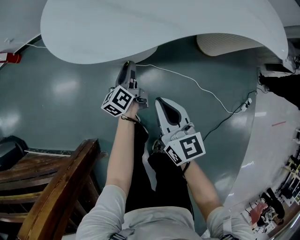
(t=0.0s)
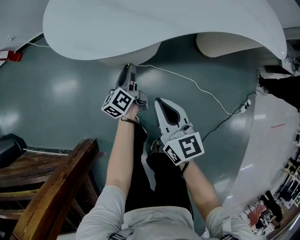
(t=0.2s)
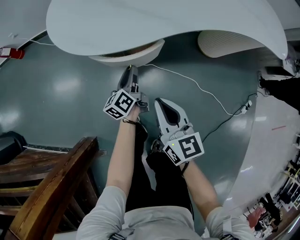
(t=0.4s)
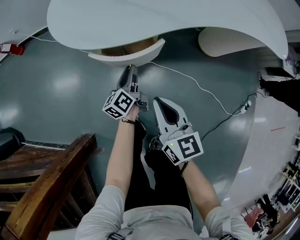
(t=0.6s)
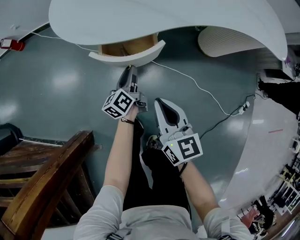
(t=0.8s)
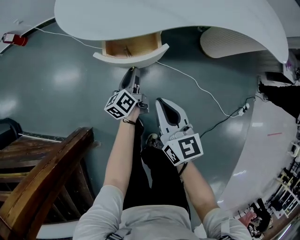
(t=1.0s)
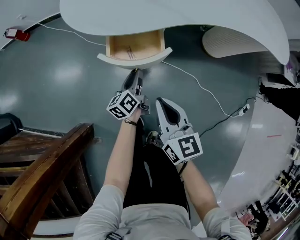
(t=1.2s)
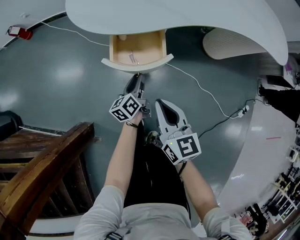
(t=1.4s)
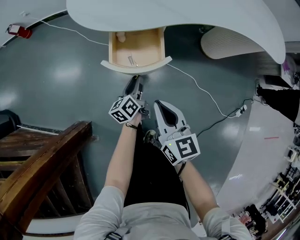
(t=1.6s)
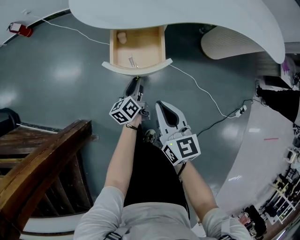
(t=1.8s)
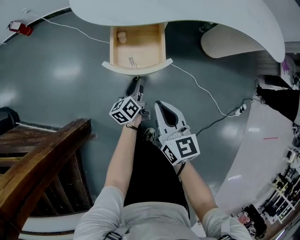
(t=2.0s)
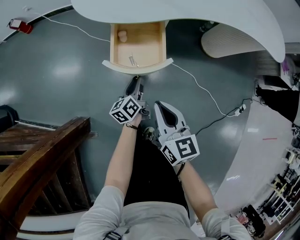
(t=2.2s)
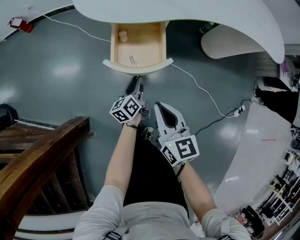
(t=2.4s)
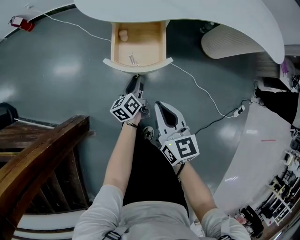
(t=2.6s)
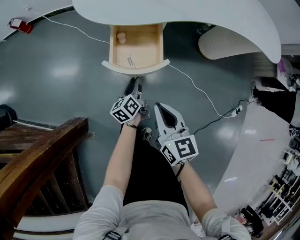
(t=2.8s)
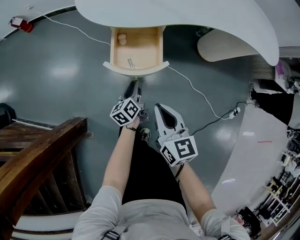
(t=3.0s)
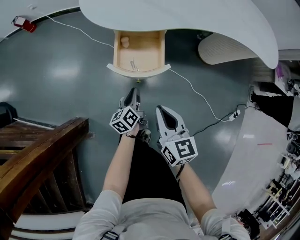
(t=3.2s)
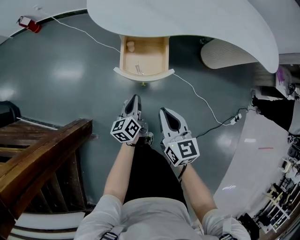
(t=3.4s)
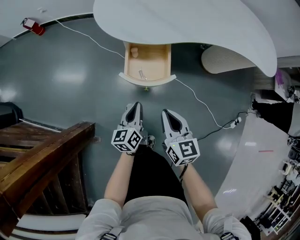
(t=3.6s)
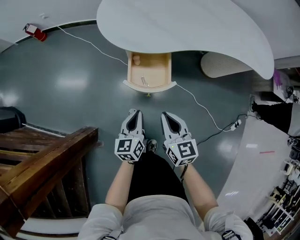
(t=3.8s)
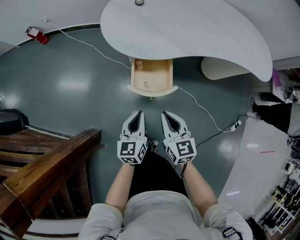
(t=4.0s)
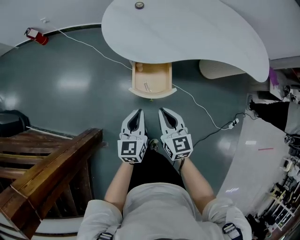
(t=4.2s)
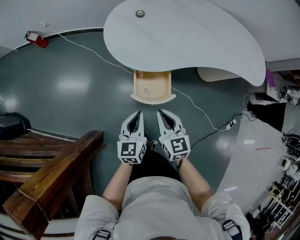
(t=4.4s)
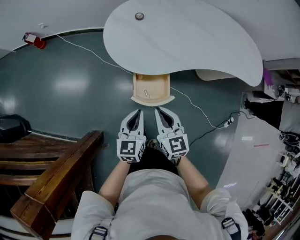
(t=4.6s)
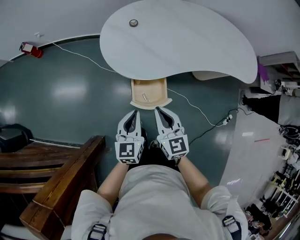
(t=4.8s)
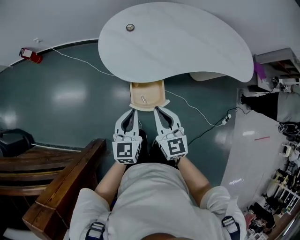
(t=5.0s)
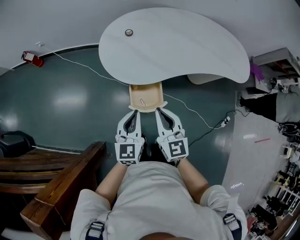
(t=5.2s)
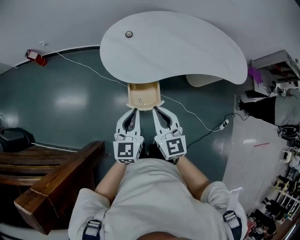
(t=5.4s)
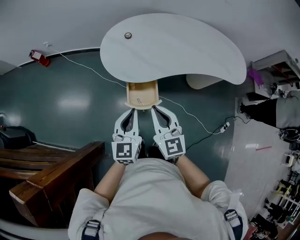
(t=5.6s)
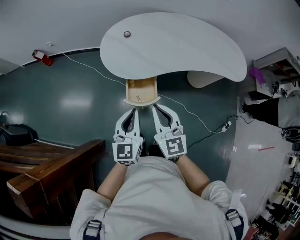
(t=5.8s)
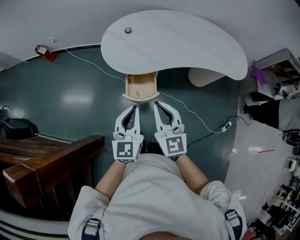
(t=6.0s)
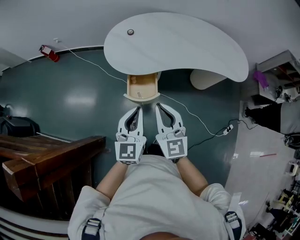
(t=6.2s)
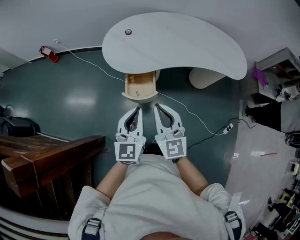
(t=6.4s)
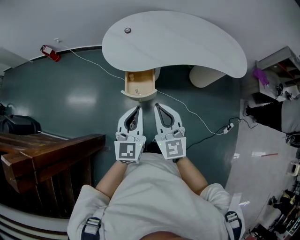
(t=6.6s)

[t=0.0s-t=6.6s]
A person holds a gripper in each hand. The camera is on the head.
t=0.0s to t=1.6s: The left gripper is displaced backward by about 15 cm, while the right gripper is displaced backward by about 10 cm.
t=1.6s to t=3.2s: The left gripper moves backward, about 5 cm.
t=3.2s to t=5.0s: The right gripper travels upward and forward by roughly 25 cm. The left gripper shifts approximately 35 cm upward, and twists approximately 40 degrees clockwise, seen from behind.
t=5.0s to t=6.6s: The right gripper heads backward, upward and to the right, covering approximately 20 cm, while the left gripper shifts approximately 20 cm backward, to the right and upward.

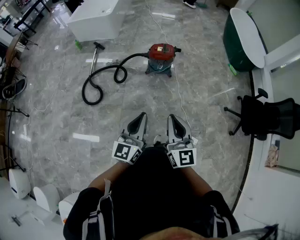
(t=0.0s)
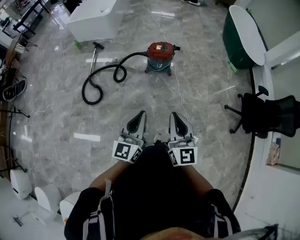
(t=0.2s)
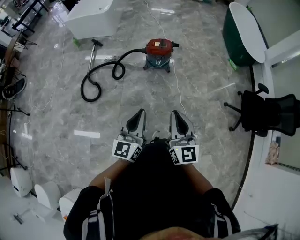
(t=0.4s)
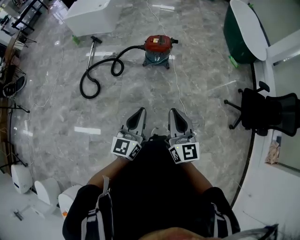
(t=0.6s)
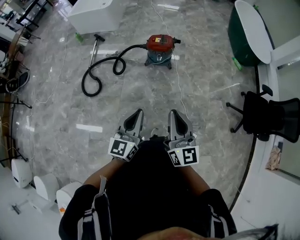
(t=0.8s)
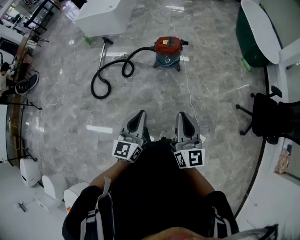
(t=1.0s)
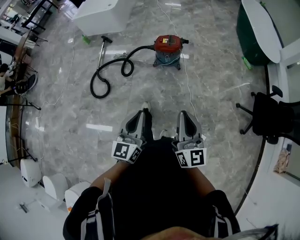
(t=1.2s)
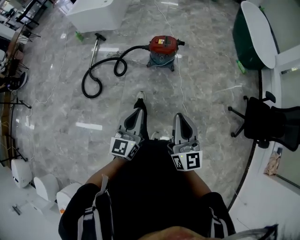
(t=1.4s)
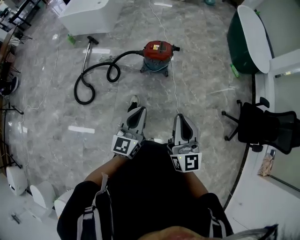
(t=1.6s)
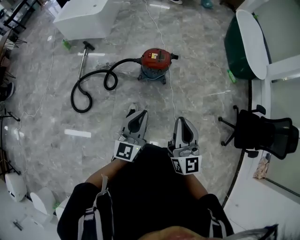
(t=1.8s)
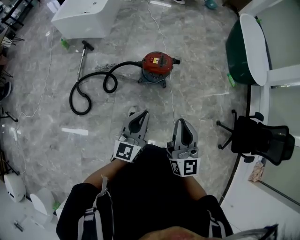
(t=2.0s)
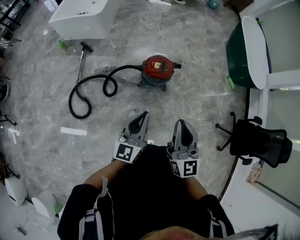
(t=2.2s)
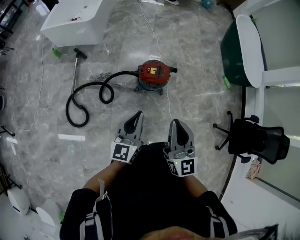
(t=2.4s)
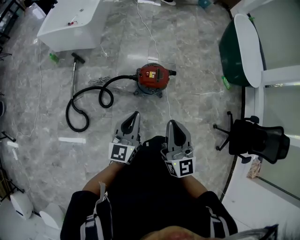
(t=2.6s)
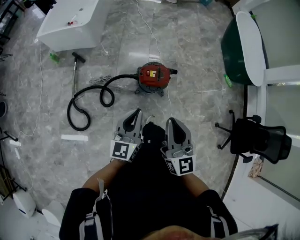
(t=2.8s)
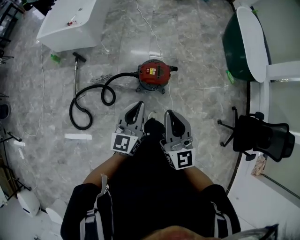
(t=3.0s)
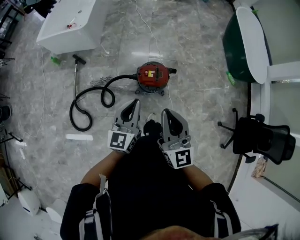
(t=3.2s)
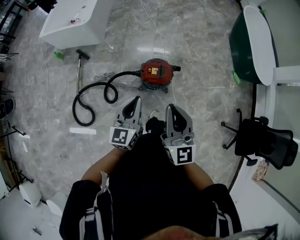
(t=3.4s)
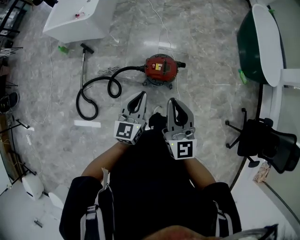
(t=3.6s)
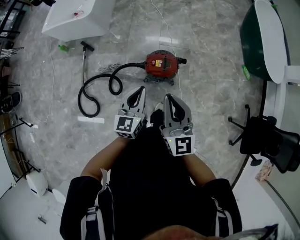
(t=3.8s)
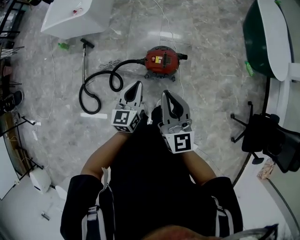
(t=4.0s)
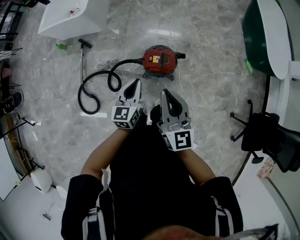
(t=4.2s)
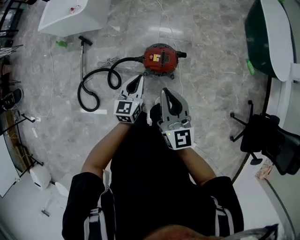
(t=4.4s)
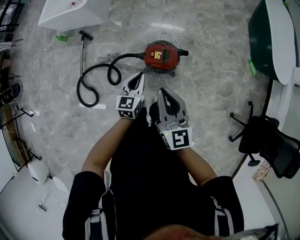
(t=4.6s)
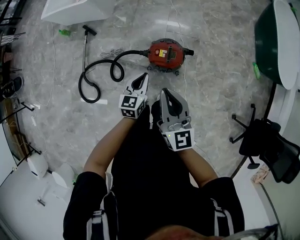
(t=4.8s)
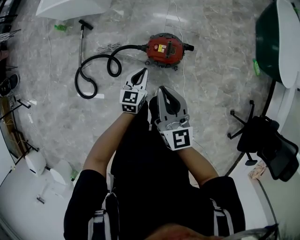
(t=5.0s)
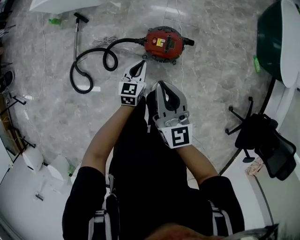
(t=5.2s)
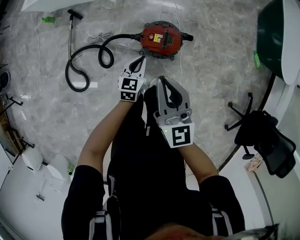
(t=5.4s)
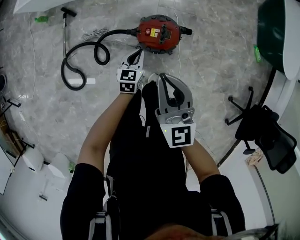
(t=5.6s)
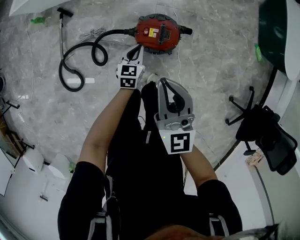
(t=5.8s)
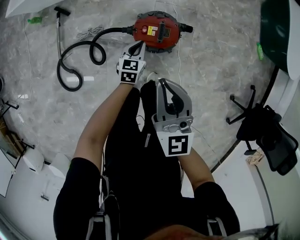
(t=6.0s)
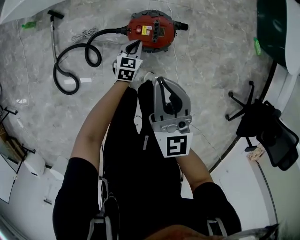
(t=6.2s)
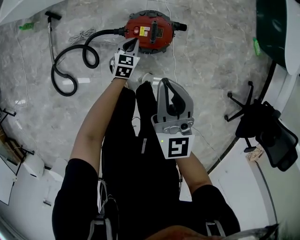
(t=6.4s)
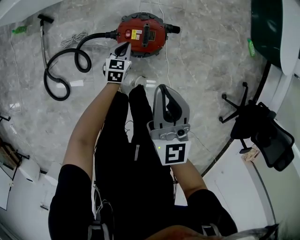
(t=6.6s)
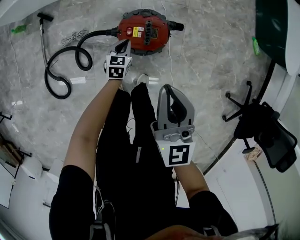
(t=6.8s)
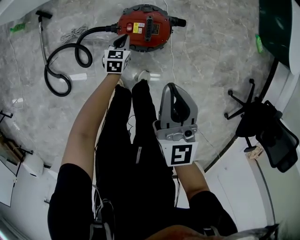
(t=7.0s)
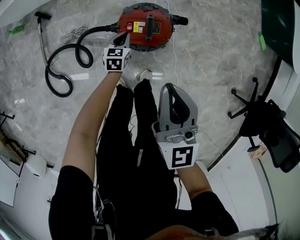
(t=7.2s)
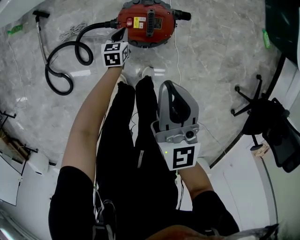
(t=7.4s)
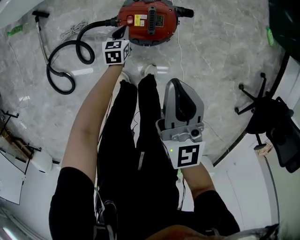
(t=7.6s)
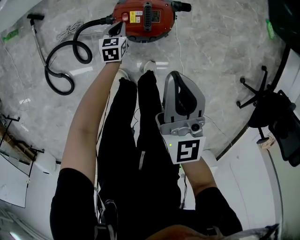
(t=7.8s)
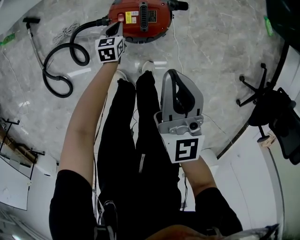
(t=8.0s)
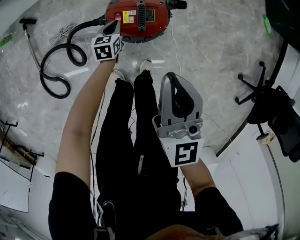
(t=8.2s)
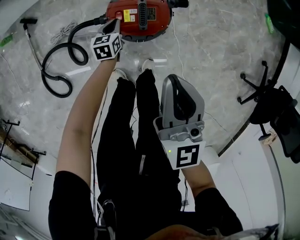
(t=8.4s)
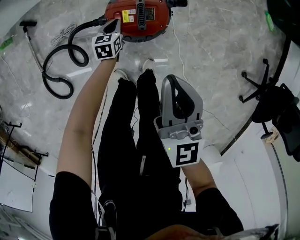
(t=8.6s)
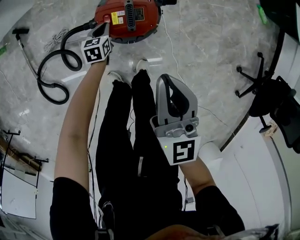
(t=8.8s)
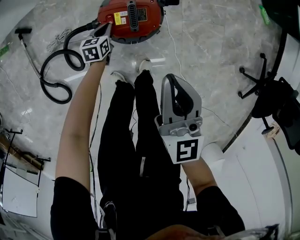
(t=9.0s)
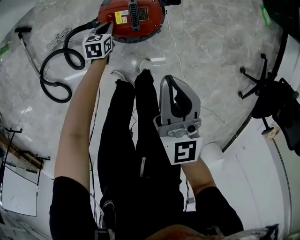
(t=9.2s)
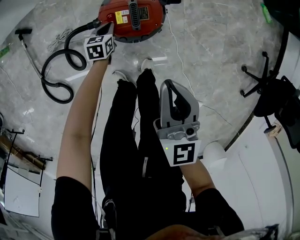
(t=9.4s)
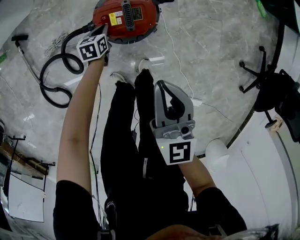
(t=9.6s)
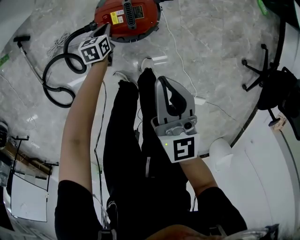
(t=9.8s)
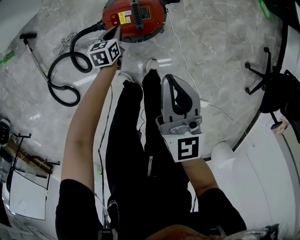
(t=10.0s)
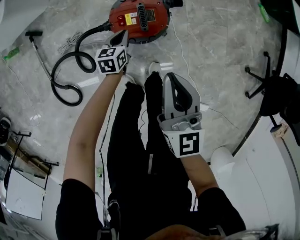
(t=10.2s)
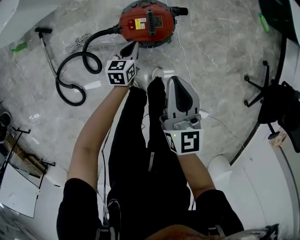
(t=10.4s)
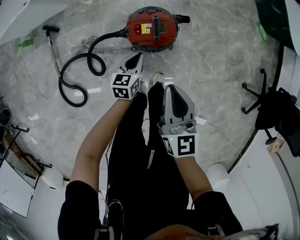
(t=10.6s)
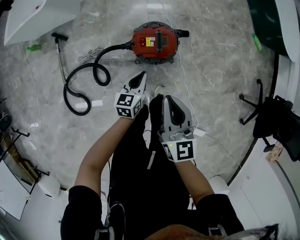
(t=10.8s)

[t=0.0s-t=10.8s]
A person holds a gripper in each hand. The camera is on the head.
t=0.0s to t=1.6s: The left gripper shifts some 15 cm forward, while the right gripper moves forward and to the right, some 15 cm.
t=1.6s to t=3.0s: Both grippers move forward, roughly 35 cm.
t=3.0s to t=4.6s: The right gripper travels forward, downward and to the right by about 20 cm. Meanwhile the left gripper shifts some 25 cm downward, forward and to the right, and swivels approximately 20 degrees.
t=4.6s to t=6.2s: The left gripper is displaced downward by about 30 cm, and rotates roughly 20 degrees. Meanwhile the right gripper moves downward and forward, about 15 cm.
t=6.2s to t=7.8s: The left gripper goes approximately 15 cm downward. The right gripper goes about 15 cm downward and to the right.
t=7.8s to t=9.2s: The grippers stay close to where they were, moving slightly.
t=9.2s to t=10.8s: The right gripper heads backward and upward, covering some 15 cm. Meanwhile the left gripper shifts roughly 30 cm upward and backward, and changes its angle by about 20 degrees.

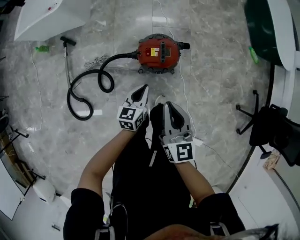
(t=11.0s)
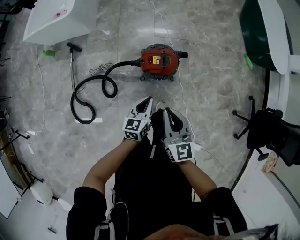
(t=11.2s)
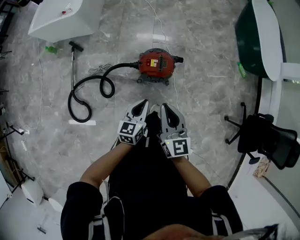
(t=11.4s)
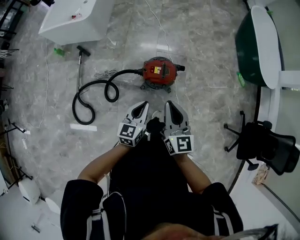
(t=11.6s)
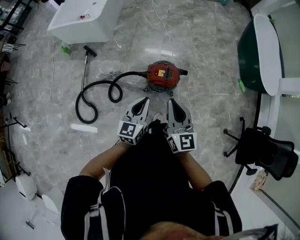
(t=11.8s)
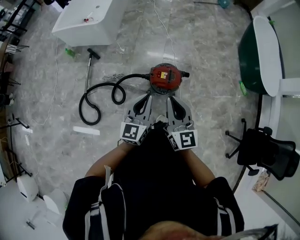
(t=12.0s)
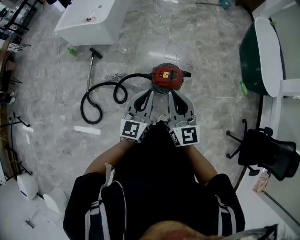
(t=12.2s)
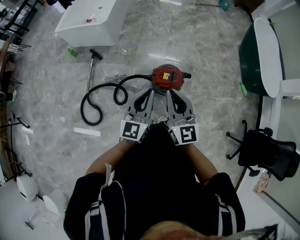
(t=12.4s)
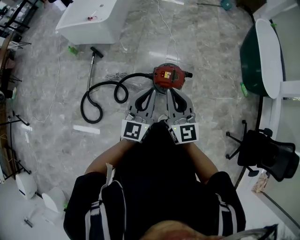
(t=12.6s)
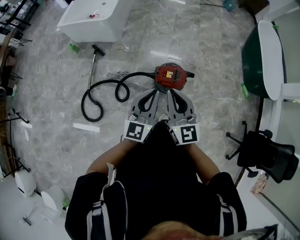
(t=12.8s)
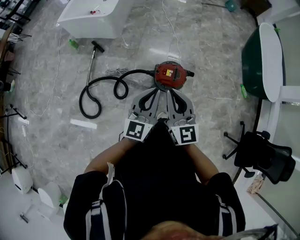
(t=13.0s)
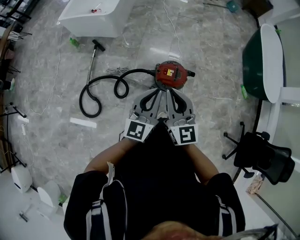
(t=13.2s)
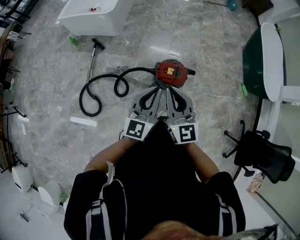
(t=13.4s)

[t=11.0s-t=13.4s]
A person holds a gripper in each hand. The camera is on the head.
t=11.0s to t=12.2s: The right gripper heads upward, covering approximately 25 cm, and changes its angle by some 20 degrees; the left gripper heads upward, covering approximately 35 cm, and turns by roughly 30 degrees.
t=12.2s to t=13.4s: The right gripper goes some 5 cm to the left.

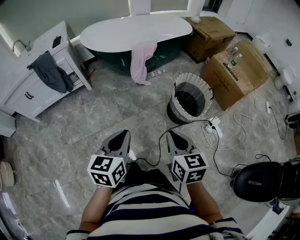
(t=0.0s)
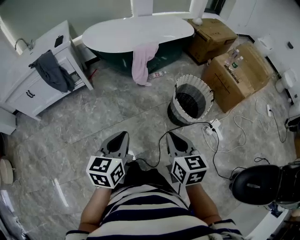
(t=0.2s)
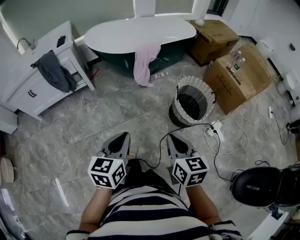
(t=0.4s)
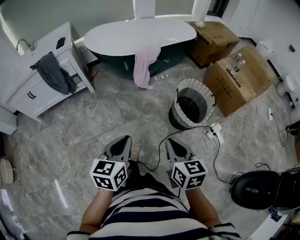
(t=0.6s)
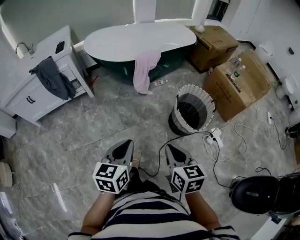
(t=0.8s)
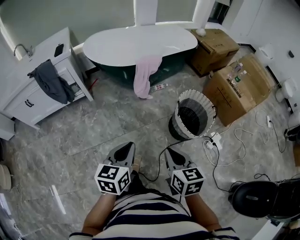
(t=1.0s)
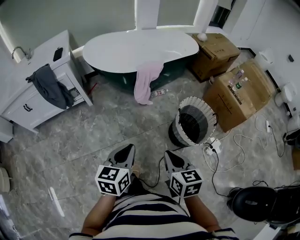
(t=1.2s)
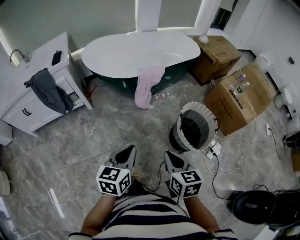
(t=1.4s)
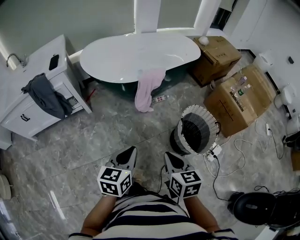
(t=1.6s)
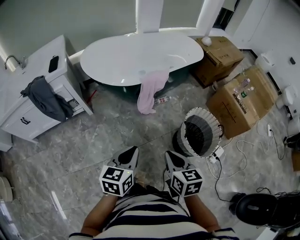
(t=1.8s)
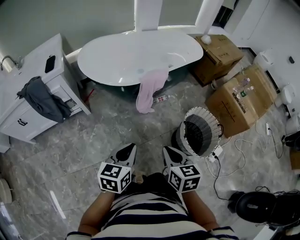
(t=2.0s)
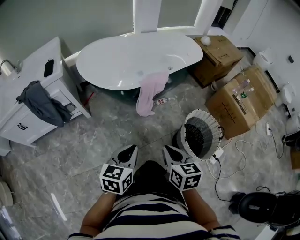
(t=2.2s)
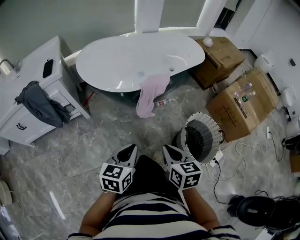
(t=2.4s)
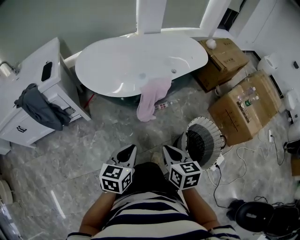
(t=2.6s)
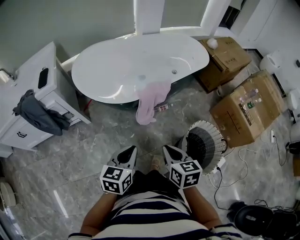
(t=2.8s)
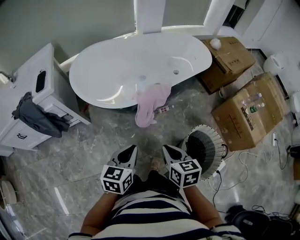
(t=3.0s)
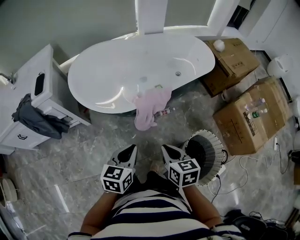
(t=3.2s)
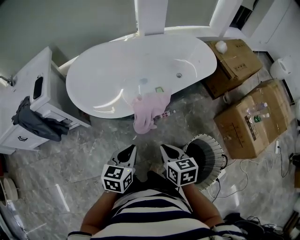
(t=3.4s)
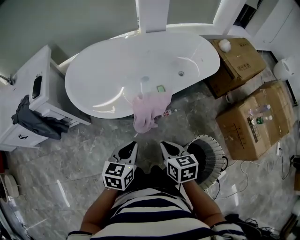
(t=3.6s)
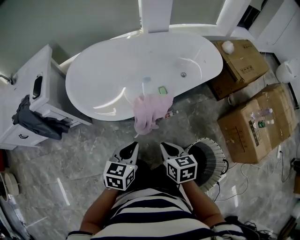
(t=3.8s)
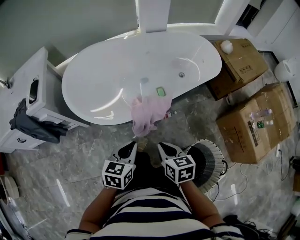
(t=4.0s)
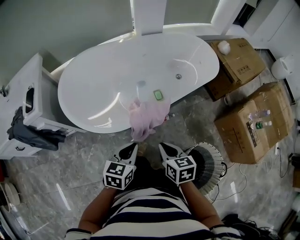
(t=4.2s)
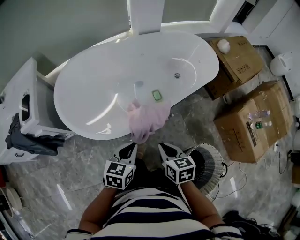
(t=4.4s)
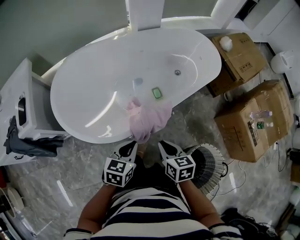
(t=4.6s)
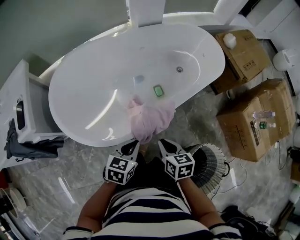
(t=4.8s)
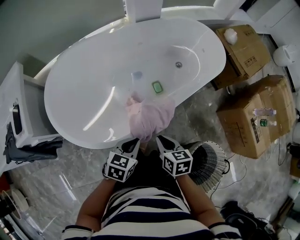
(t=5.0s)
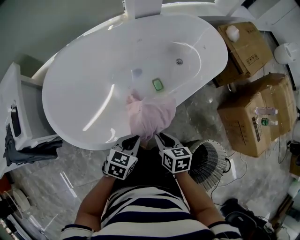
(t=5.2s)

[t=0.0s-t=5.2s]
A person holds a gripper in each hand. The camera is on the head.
t=0.0s to t=1.8s: The two grippers go approximately 20 cm forward.
t=1.8s to t=3.4s: The two grippers go roughly 25 cm forward.
t=3.4s to t=5.2s: The two grippers go some 20 cm forward and downward. The left gripper swivels some 20 degrees.
